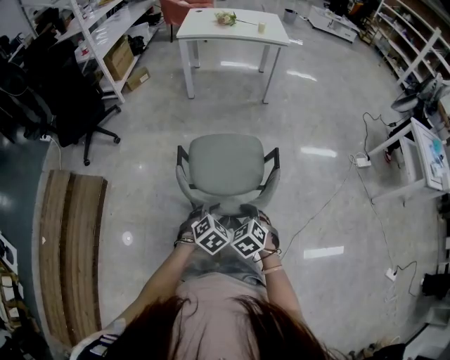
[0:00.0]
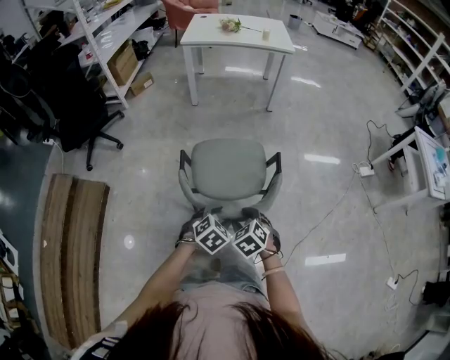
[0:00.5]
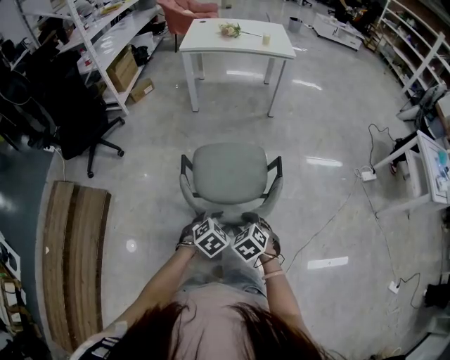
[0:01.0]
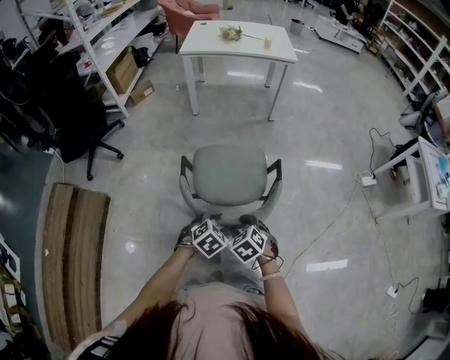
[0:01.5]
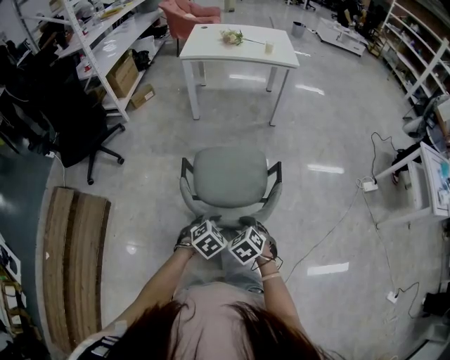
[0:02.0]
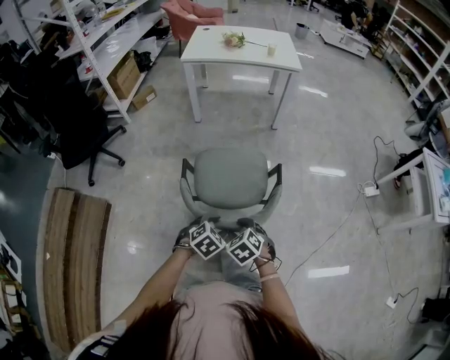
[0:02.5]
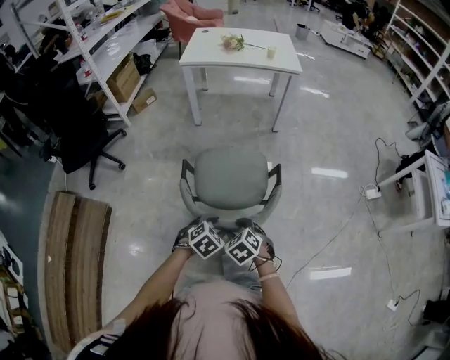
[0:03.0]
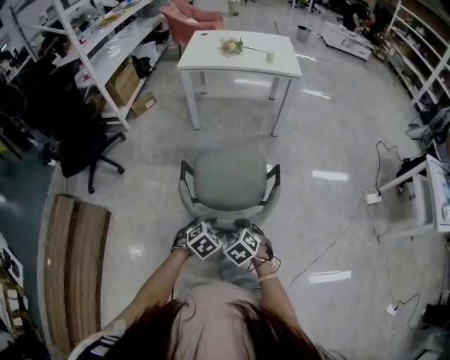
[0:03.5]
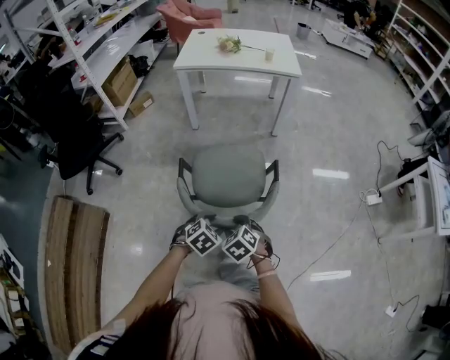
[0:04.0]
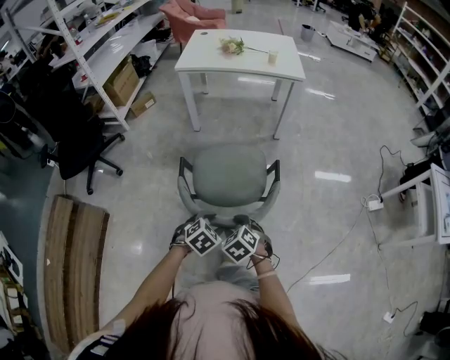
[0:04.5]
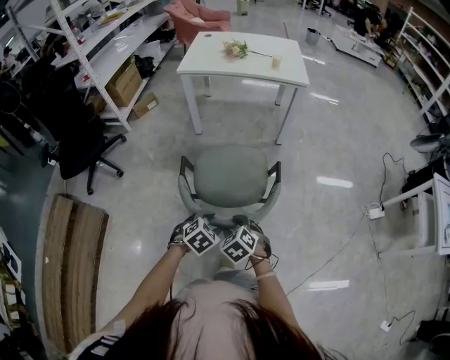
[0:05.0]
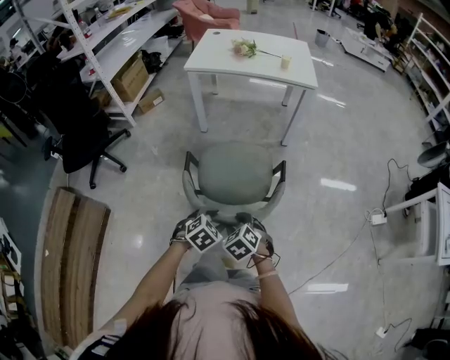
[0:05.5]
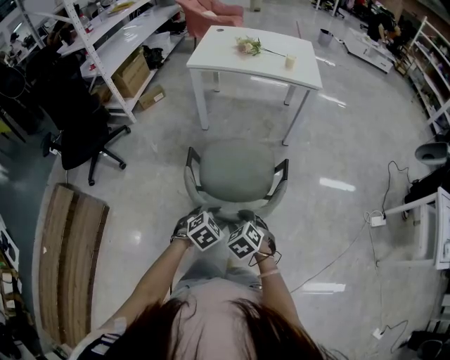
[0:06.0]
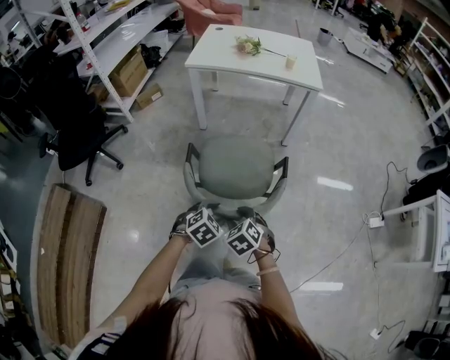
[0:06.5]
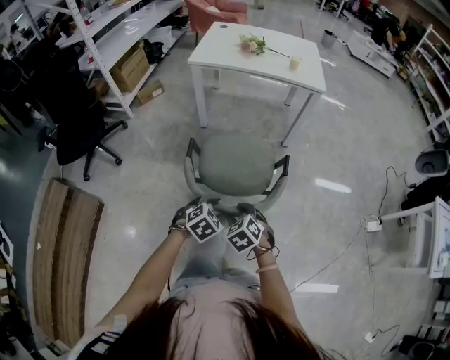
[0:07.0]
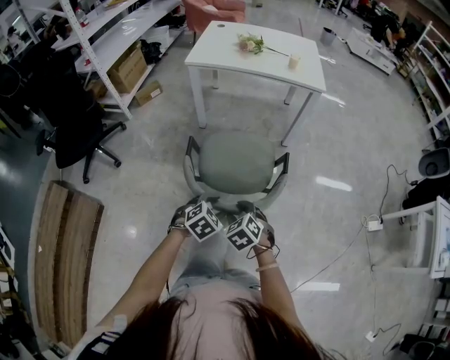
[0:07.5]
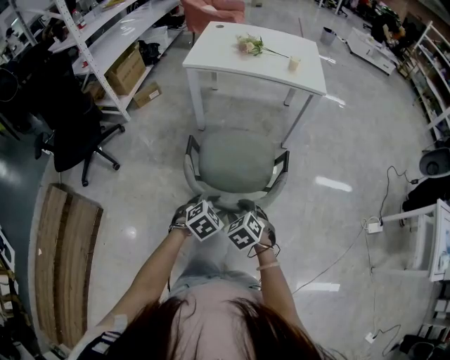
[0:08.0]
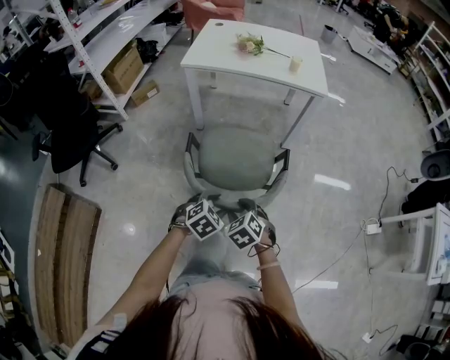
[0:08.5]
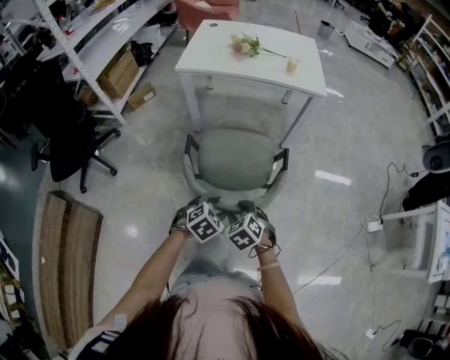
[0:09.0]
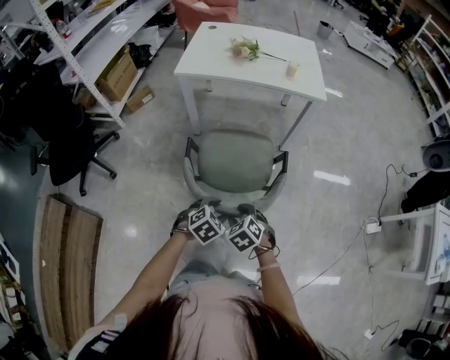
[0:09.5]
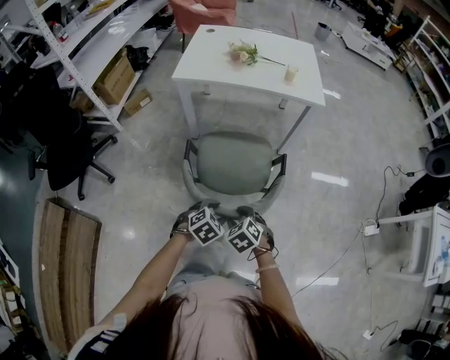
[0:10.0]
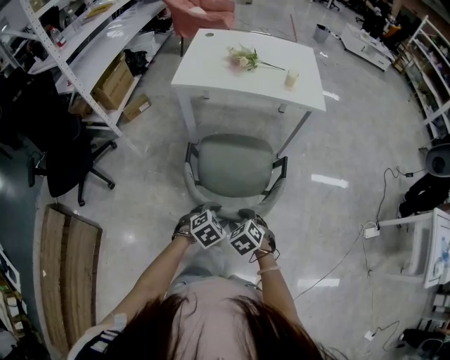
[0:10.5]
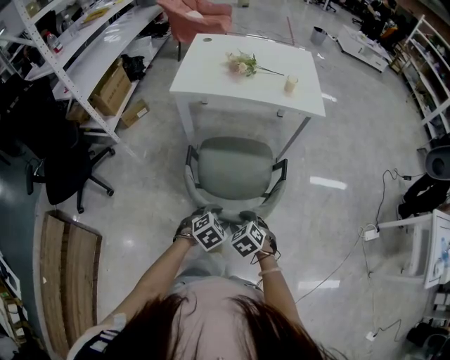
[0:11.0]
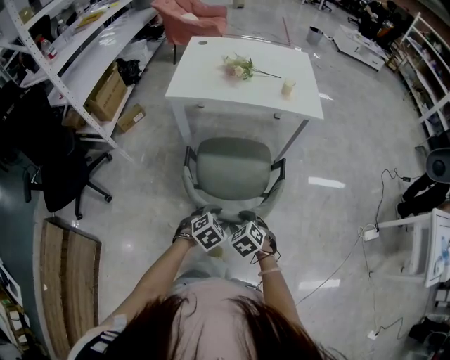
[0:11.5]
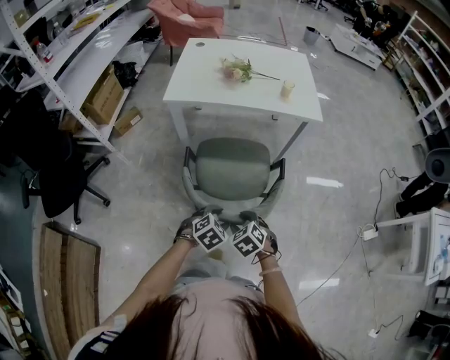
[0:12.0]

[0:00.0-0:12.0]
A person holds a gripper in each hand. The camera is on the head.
0.0 to 2.0 s: Both grippers move forward, roughly 15 cm.
2.0 to 4.0 s: The grippers both shift forward by some 15 cm.
4.0 to 6.0 s: The two grippers go approximately 10 cm forward.
6.0 to 8.0 s: The two grippers go about 10 cm forward.
8.0 to 10.0 s: Both grippers move forward, about 10 cm.
10.0 to 12.0 s: Both grippers travel together forward, about 10 cm.

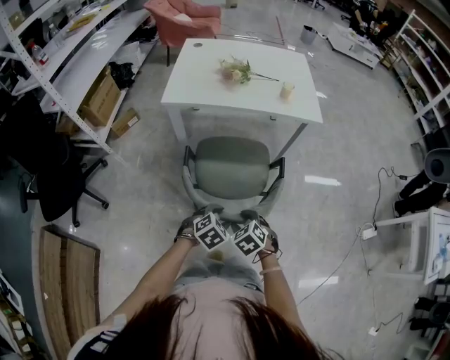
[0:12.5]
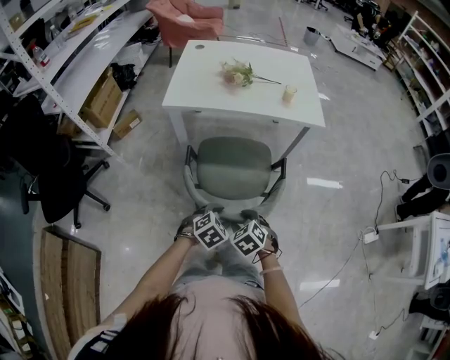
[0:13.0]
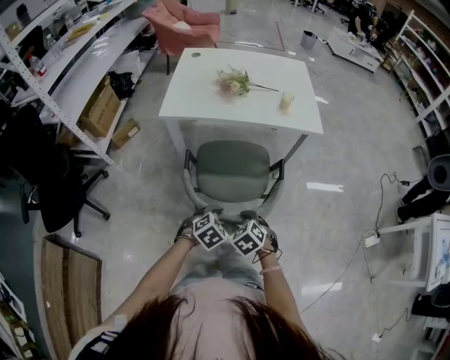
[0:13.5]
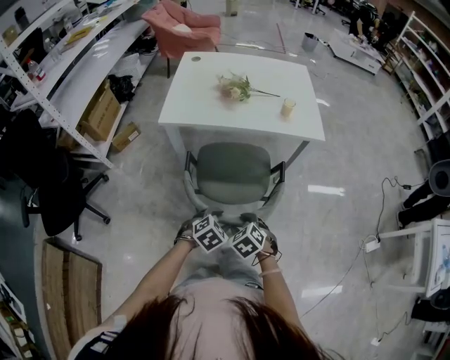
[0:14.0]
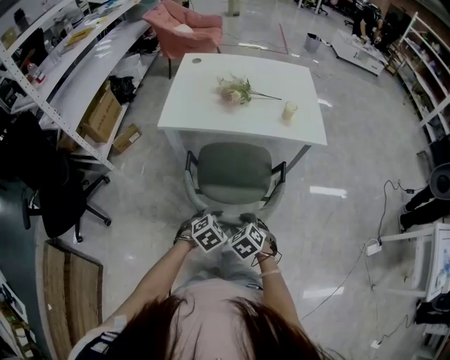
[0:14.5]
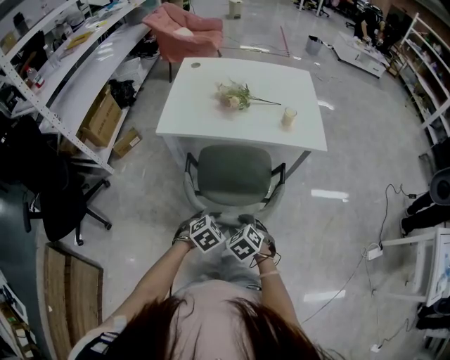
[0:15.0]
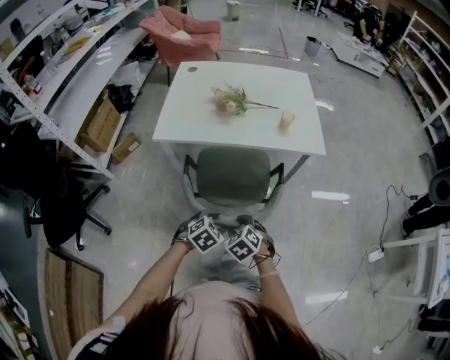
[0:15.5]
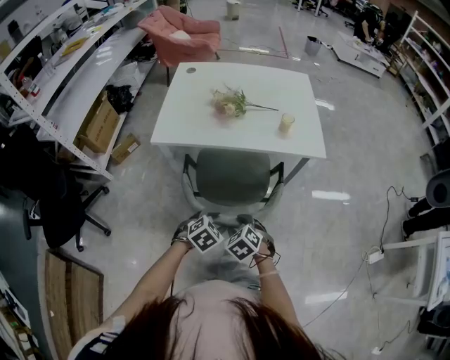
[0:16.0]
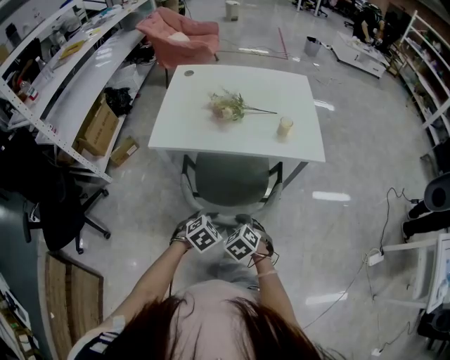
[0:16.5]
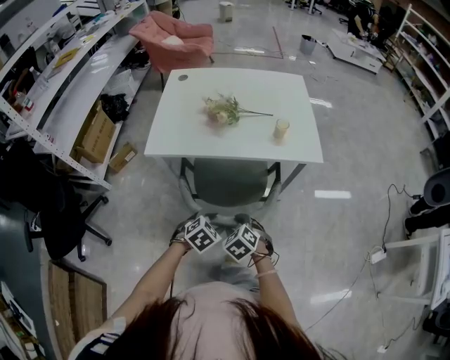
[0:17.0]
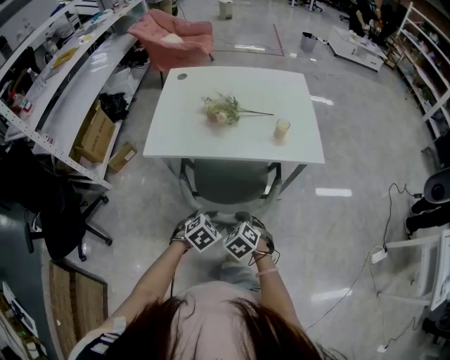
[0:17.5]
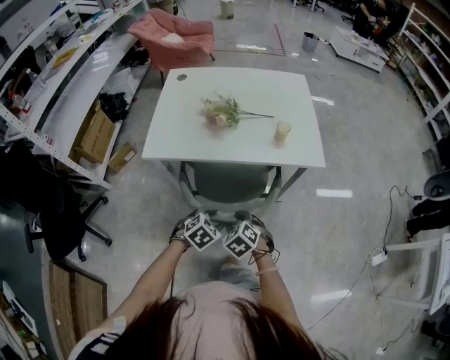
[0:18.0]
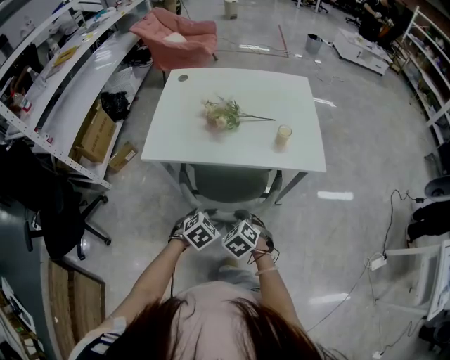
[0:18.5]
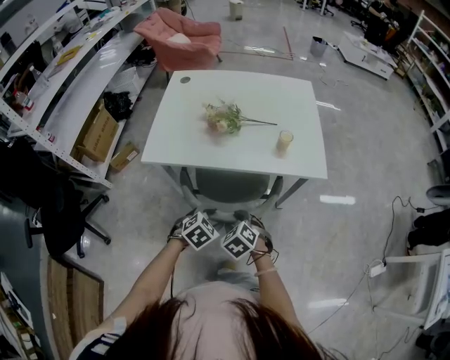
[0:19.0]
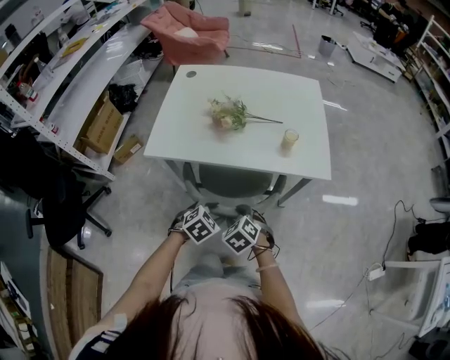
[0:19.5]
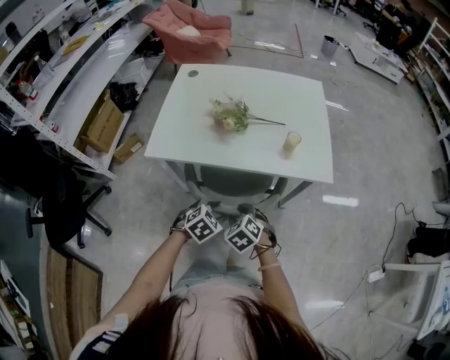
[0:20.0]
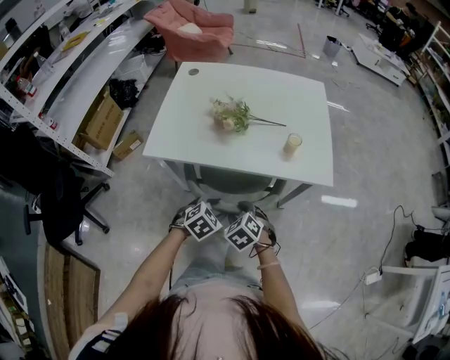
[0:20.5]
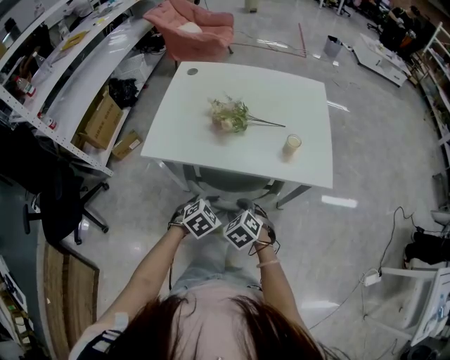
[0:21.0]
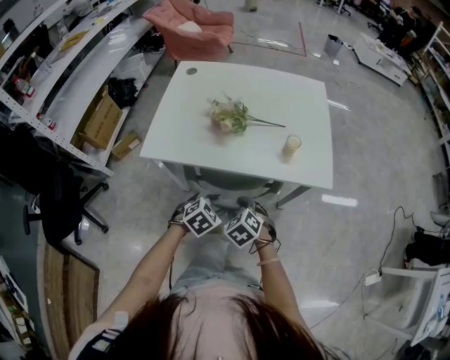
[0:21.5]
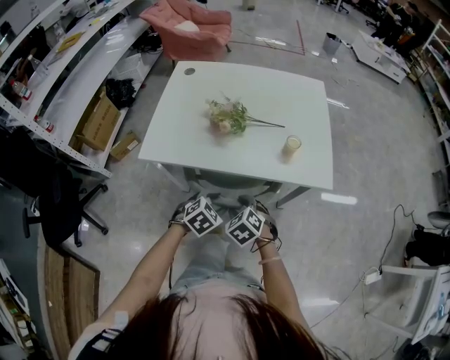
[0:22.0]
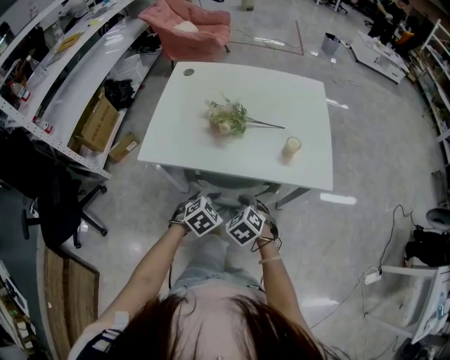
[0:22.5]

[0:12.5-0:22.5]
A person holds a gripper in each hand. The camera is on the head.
12.5 to 14.5 s: The two grippers go approximately 10 cm forward.
14.5 to 16.5 s: The two grippers go some 10 cm forward.
16.5 to 18.5 s: Both grippers move forward, some 10 cm.
18.5 to 20.5 s: The two grippers go some 5 cm forward.
20.5 to 22.5 s: The grippers move only a little.

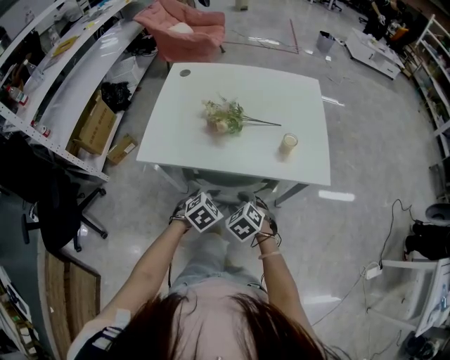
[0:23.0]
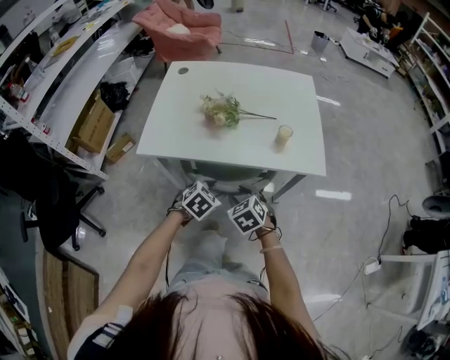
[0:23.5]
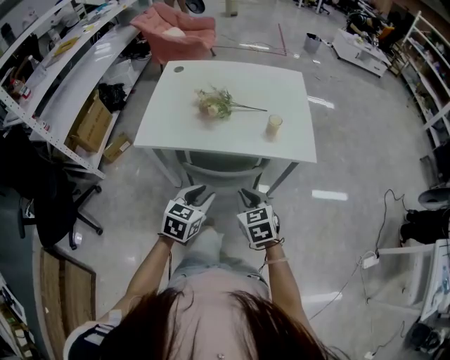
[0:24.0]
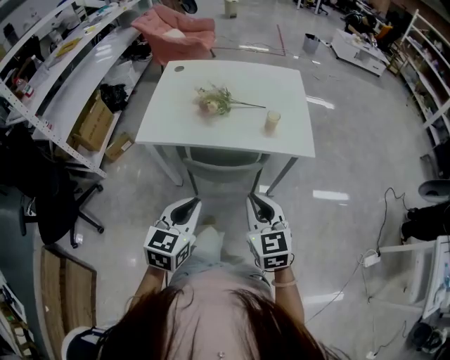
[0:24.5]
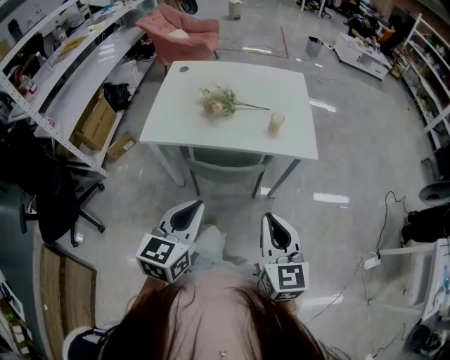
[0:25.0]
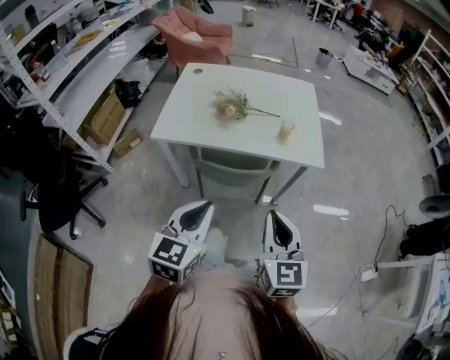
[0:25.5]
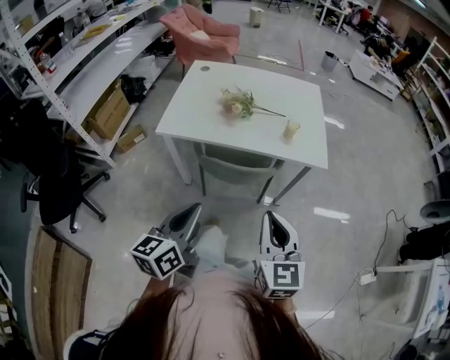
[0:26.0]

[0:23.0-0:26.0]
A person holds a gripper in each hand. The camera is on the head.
23.0 to 24.5 s: The right gripper heads upward, backward and to the right, covering roughly 25 cm, points its fingers roughly 40 degrees further upward, and closes; the left gripper moves upward and backward, roughly 25 cm, angles its fingers upward, by some 30 degrees, and closes up.
24.5 to 26.0 s: The right gripper heads backward and upward, covering some 10 cm; the left gripper goes some 5 cm backward, and swivels approximately 30 degrees.

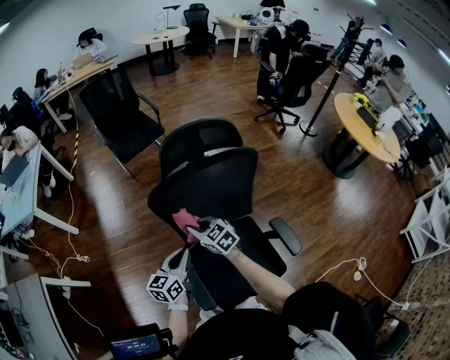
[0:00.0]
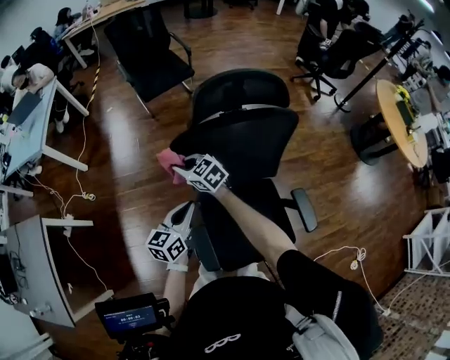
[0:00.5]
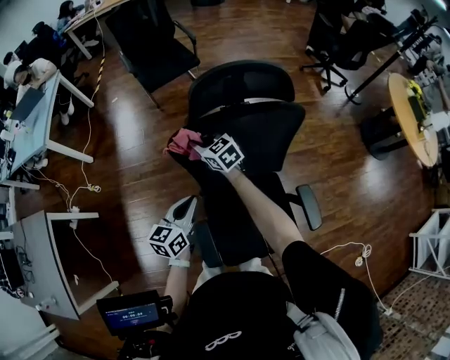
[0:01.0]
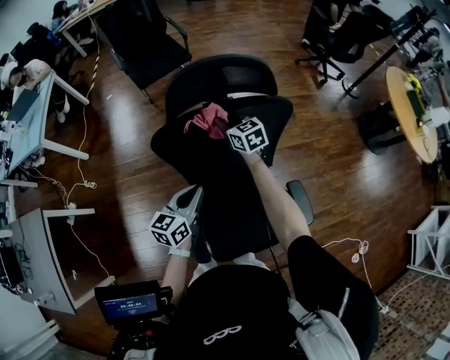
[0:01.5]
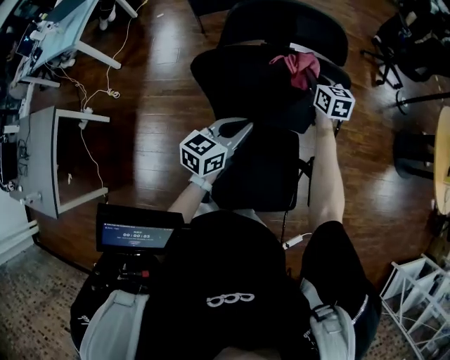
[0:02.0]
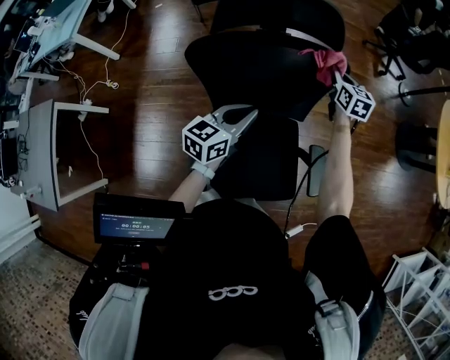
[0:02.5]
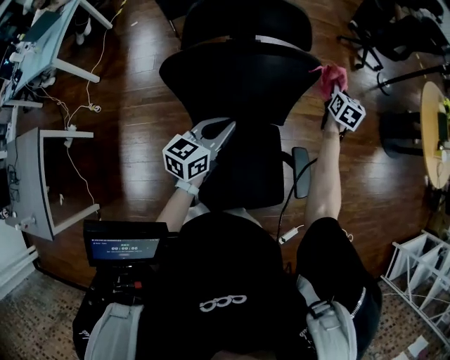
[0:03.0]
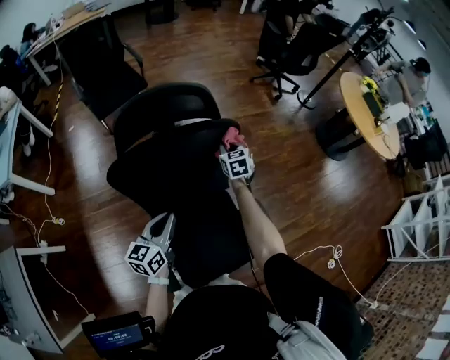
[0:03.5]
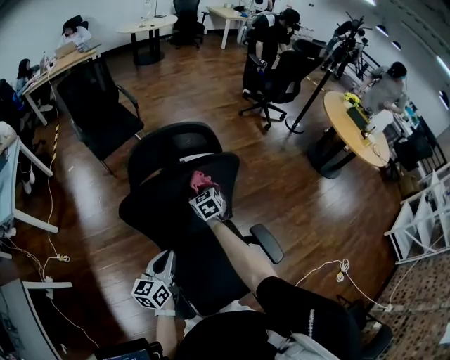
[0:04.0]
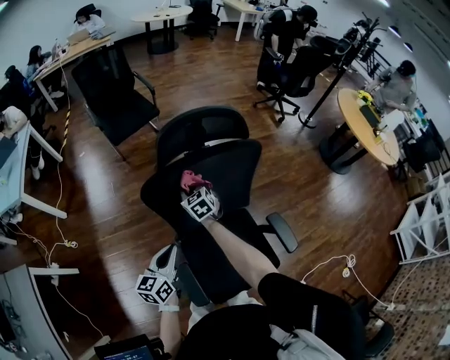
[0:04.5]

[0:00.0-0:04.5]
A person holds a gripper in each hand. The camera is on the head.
0.0 to 2.0 s: The left gripper is displaced to the right and forward by about 15 cm; the right gripper goes about 35 cm to the right and forward.
2.0 to 4.5 s: Both grippers travel together to the left and backward, some 20 cm.
